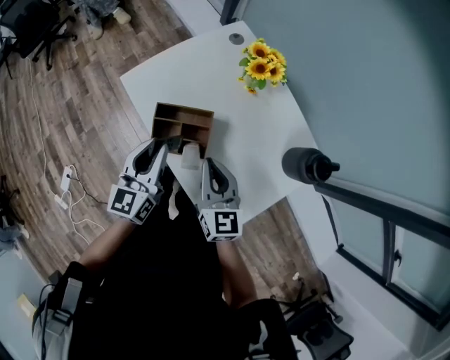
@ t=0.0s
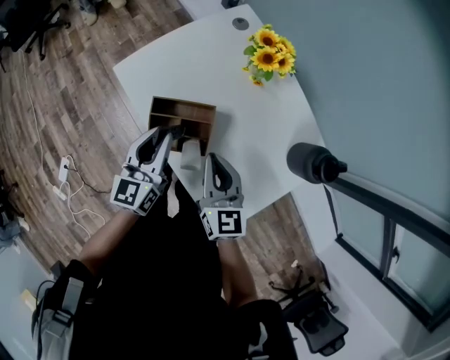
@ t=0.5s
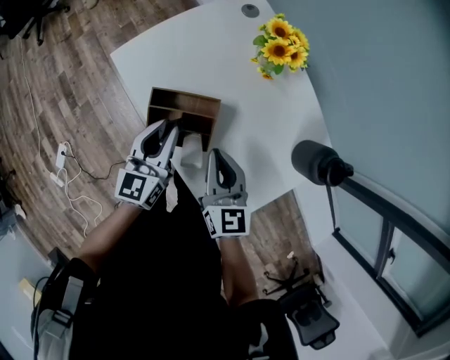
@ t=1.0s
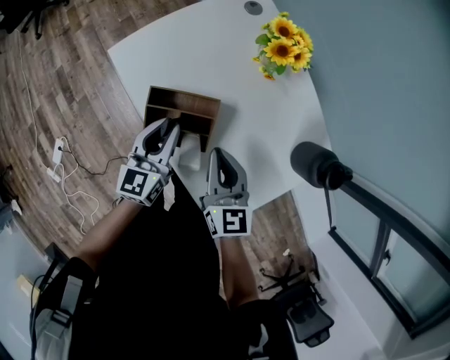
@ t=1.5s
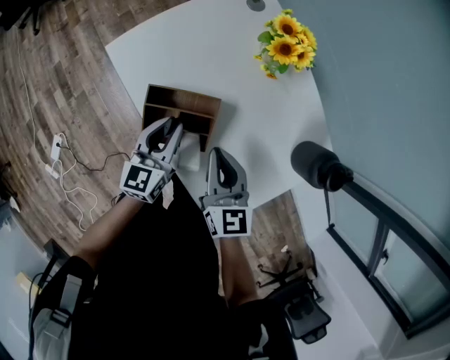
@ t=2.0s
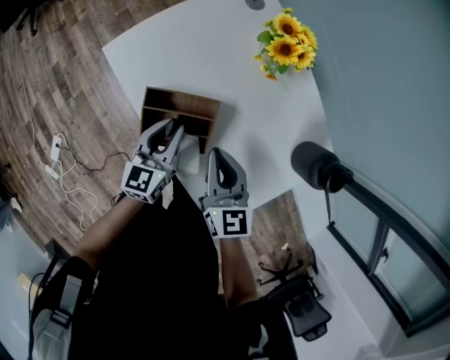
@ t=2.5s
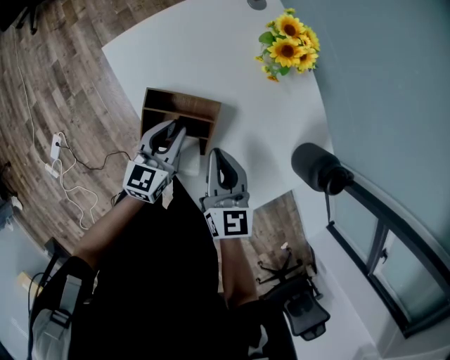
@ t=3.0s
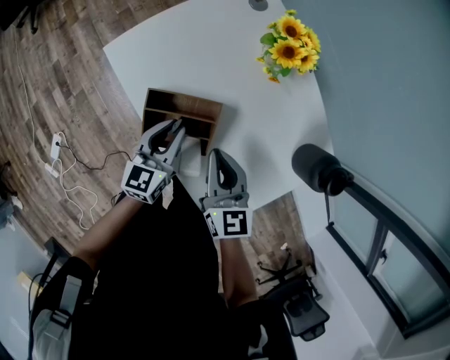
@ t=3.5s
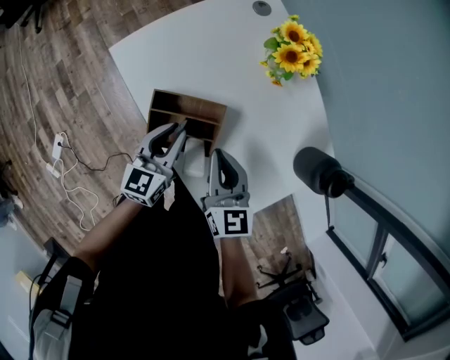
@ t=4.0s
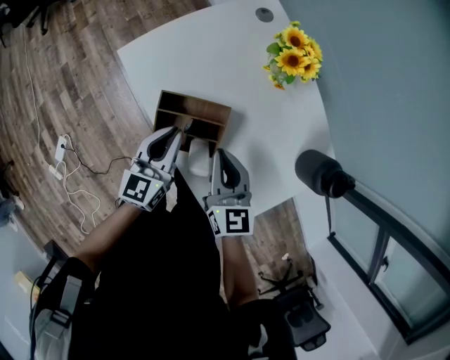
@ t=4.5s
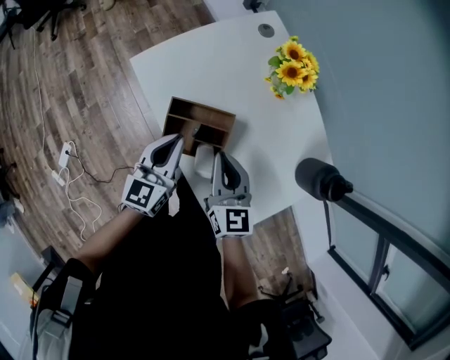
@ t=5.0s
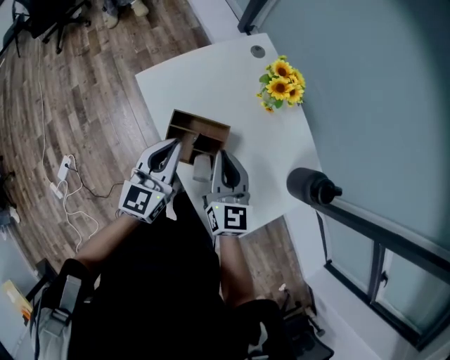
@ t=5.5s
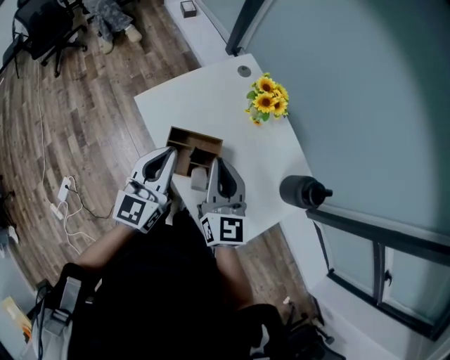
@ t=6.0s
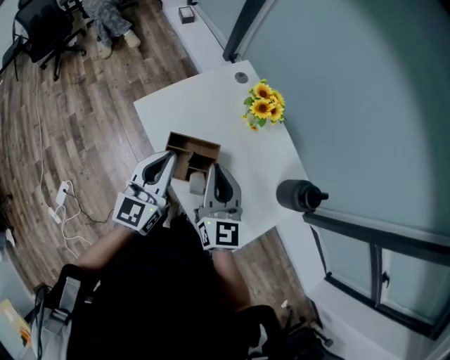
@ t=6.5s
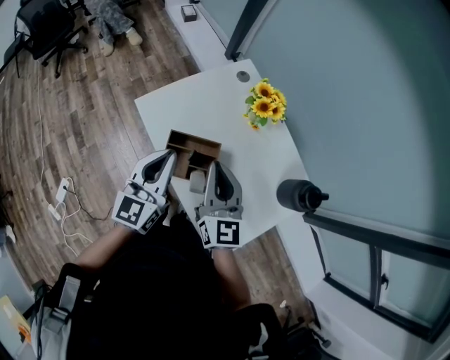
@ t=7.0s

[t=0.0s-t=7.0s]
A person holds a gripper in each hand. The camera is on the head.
t=0.0s to t=2.0s: The right gripper heads downward, covering some 5 cm. The left gripper is displaced downward and forward by approximately 15 cm.
t=2.0s to t=3.5s: There are only small adjustments of the grippers.
t=3.5s to t=5.0s: The left gripper heads upward, covering about 10 cm.
t=5.0s to t=7.0s: The two grippers go about 15 cm upward.

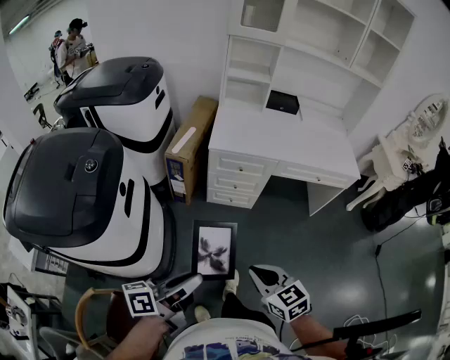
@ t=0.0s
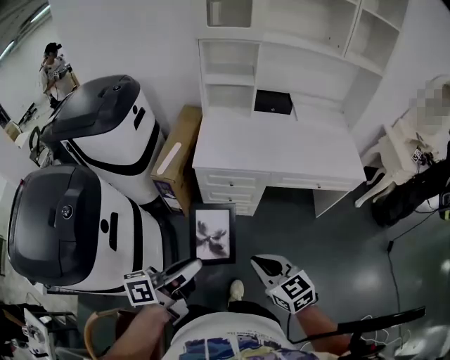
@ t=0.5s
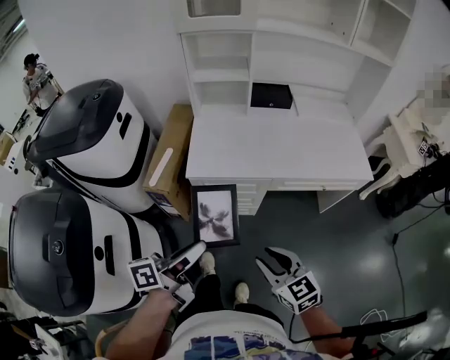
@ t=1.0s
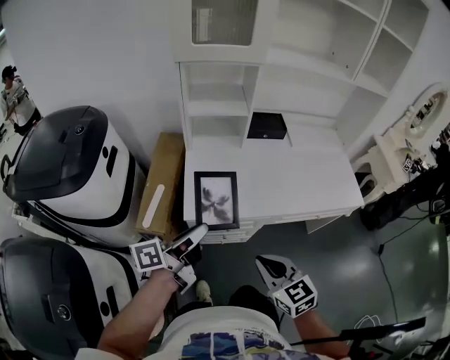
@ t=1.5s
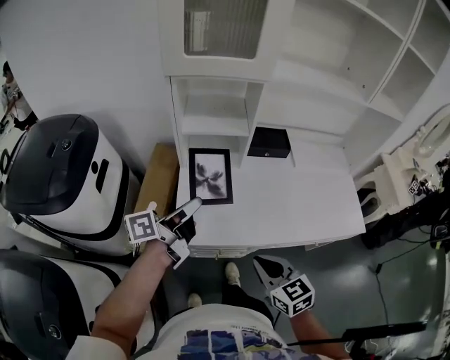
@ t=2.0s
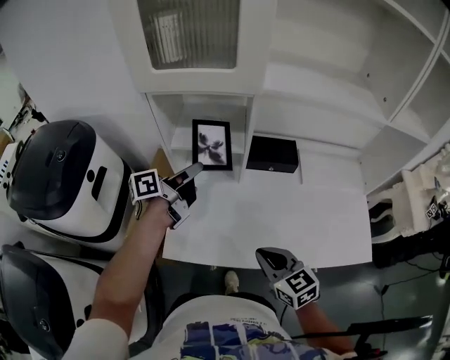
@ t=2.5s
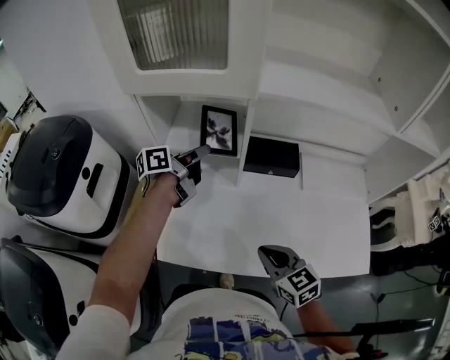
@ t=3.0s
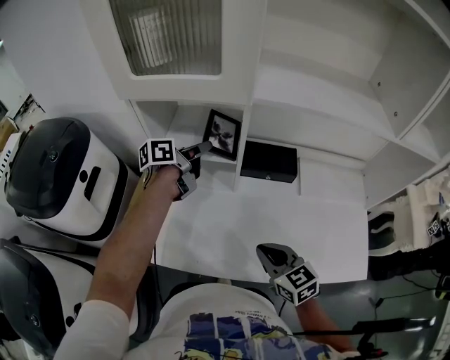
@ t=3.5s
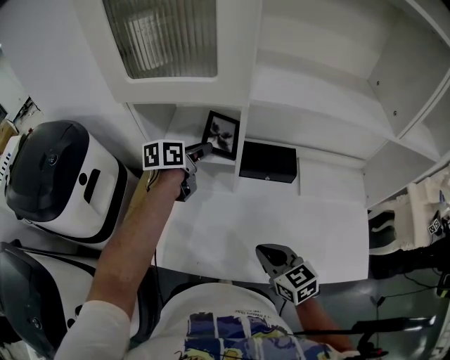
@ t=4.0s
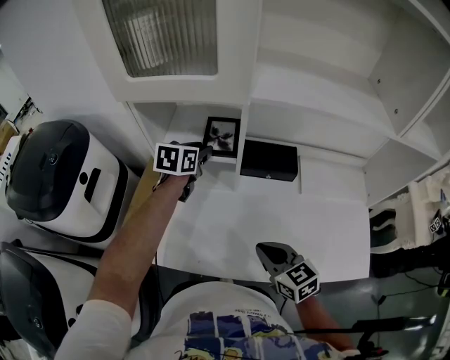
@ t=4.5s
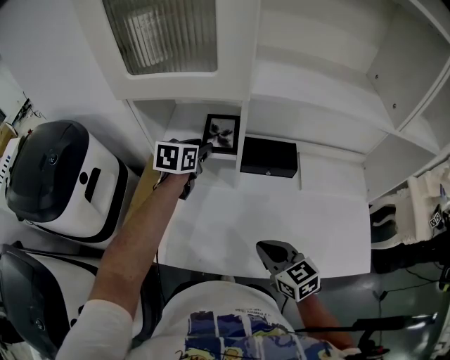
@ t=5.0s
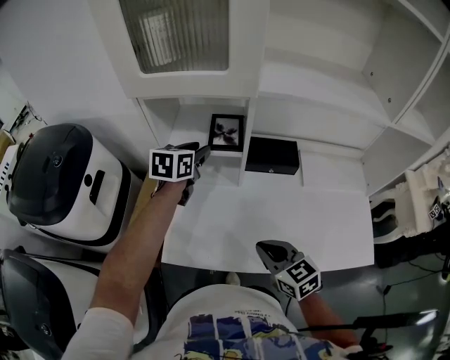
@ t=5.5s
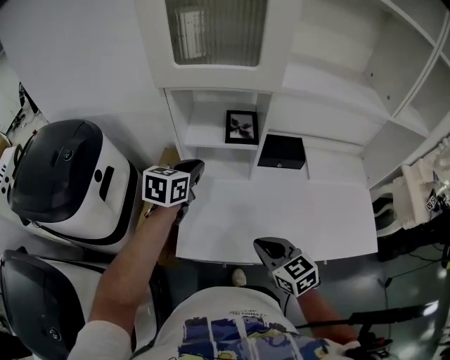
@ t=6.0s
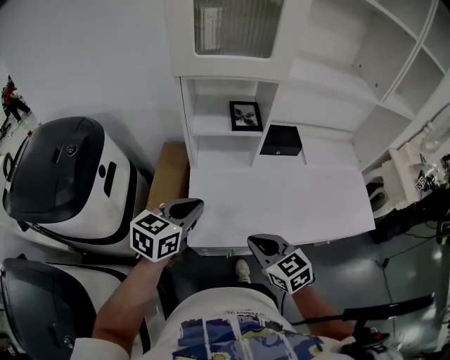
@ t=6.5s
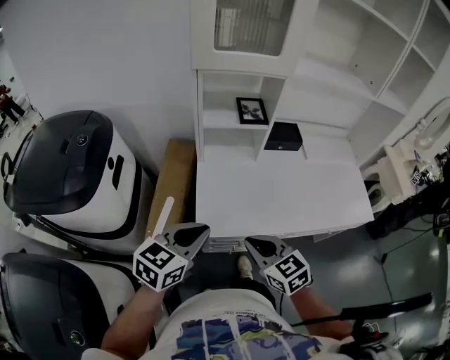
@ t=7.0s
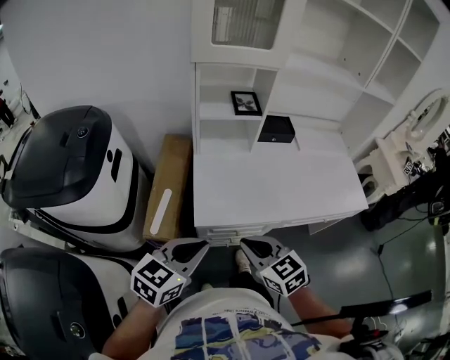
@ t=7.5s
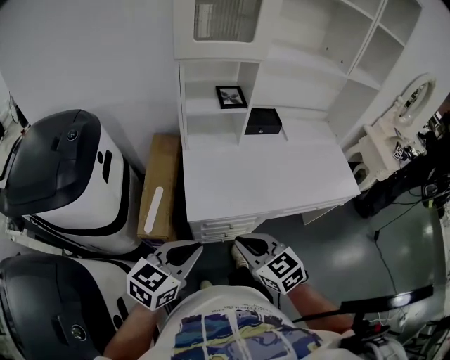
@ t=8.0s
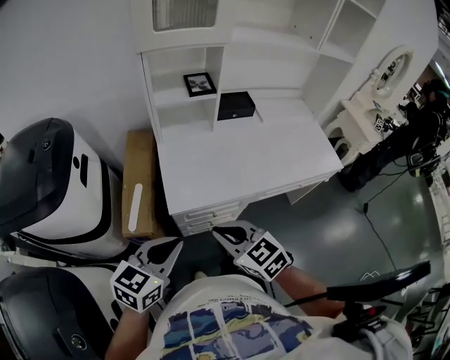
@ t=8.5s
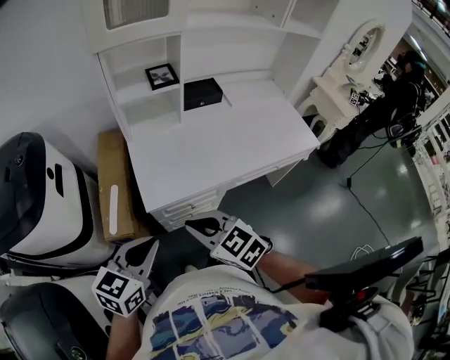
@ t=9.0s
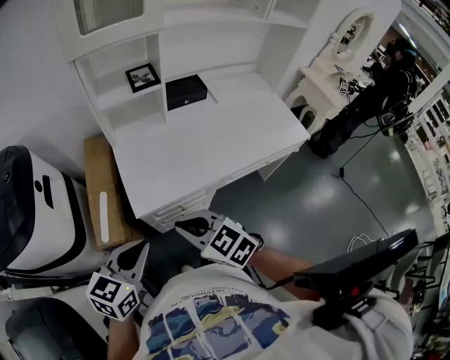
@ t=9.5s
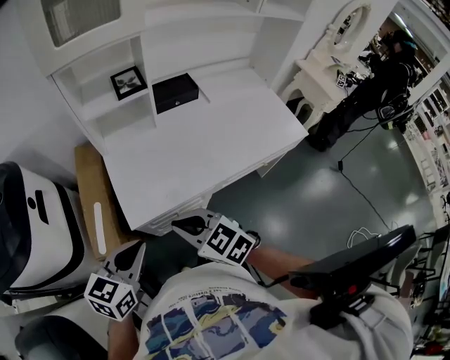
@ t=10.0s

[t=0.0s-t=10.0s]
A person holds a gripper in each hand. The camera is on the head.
t=0.0s to t=2.0s: The two grippers travel together, forward, some 50 cm. The right gripper opens, then closes again.
t=2.0s to t=4.0s: The left gripper is displaced forward by approximately 30 cm, and swivels some 40 degrees. Meanwhile the right gripper heads forward and to the right, covering roughly 20 cm.
t=4.0s to t=6.0s: The right gripper shifts about 10 cm to the left. The left gripper heads backward and to the left, covering some 15 cm, turns by about 20 degrees, and closes its fingers.
t=6.0s to t=8.0s: The right gripper shifts about 25 cm backward and to the left, while the left gripper is displaced backward by approximately 40 cm, and changes its angle by roughly 30 degrees.
t=8.0s to t=10.0s: The left gripper moves forward, about 5 cm, while the right gripper ends up roughly 5 cm from where it was.

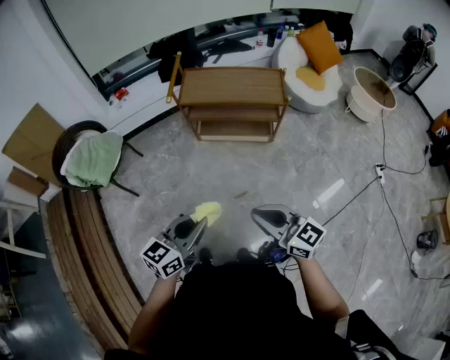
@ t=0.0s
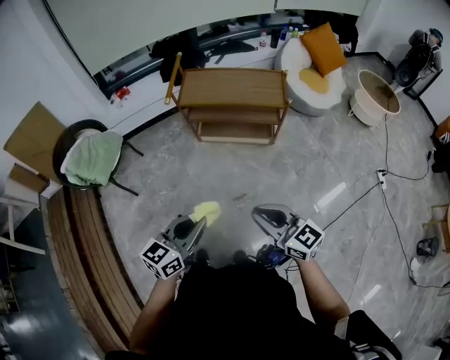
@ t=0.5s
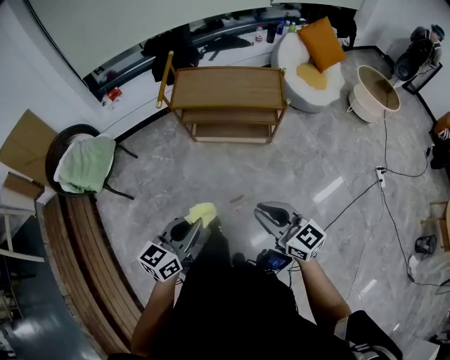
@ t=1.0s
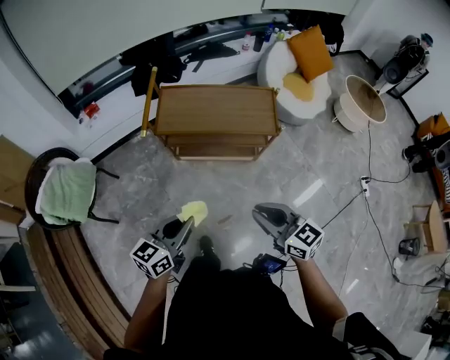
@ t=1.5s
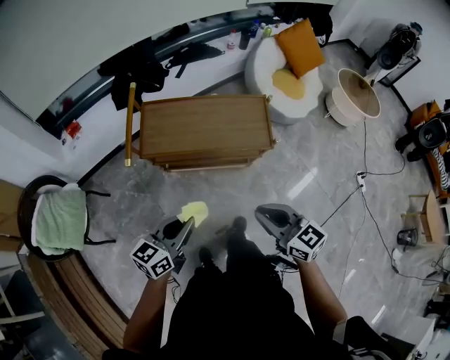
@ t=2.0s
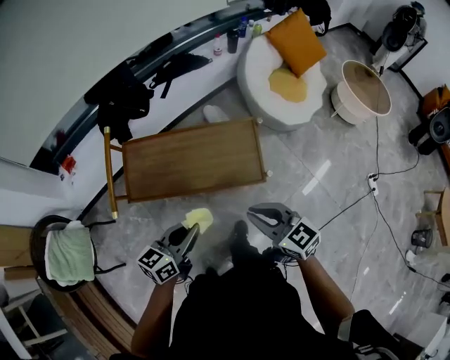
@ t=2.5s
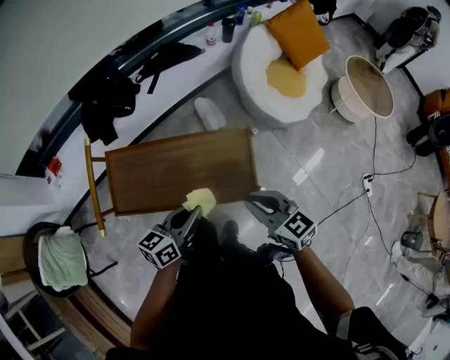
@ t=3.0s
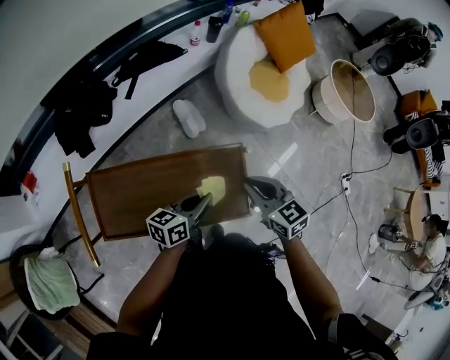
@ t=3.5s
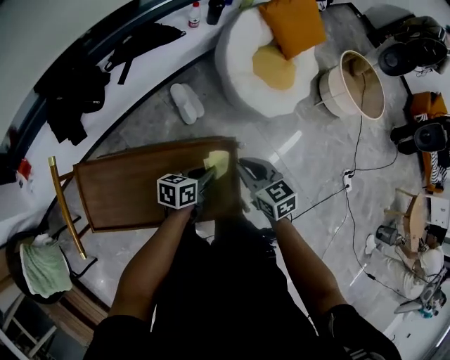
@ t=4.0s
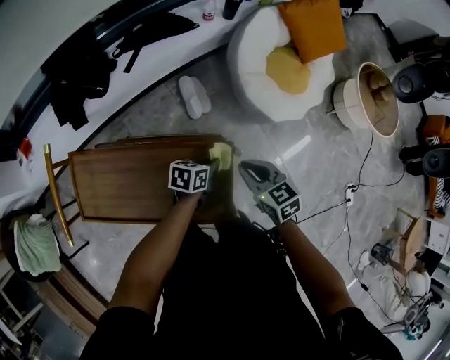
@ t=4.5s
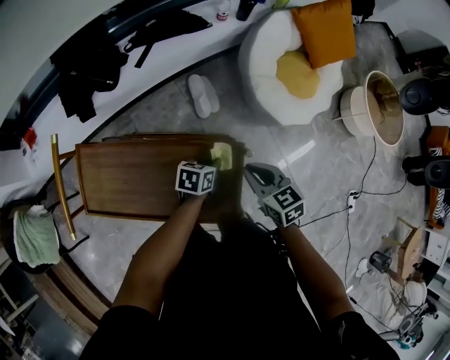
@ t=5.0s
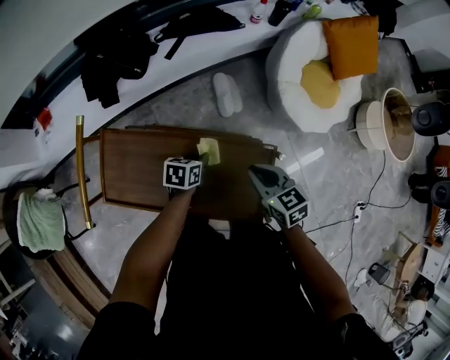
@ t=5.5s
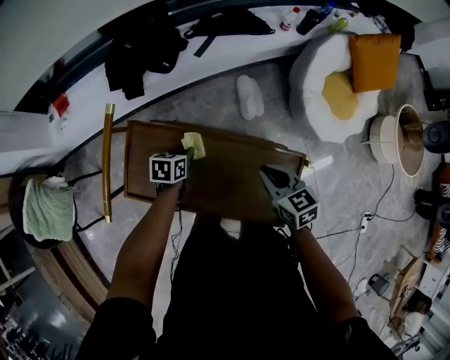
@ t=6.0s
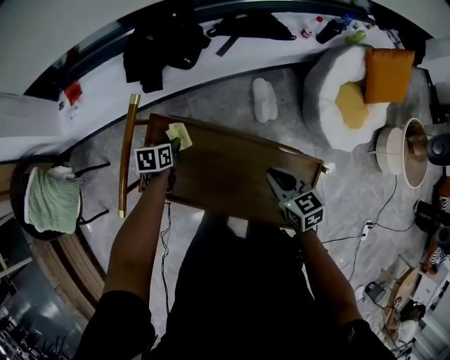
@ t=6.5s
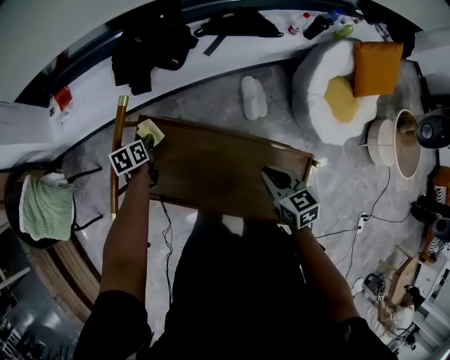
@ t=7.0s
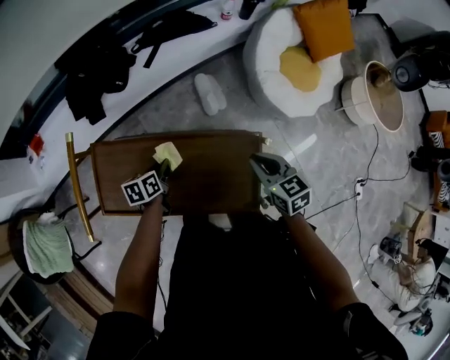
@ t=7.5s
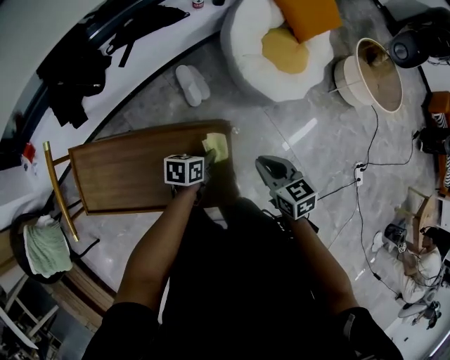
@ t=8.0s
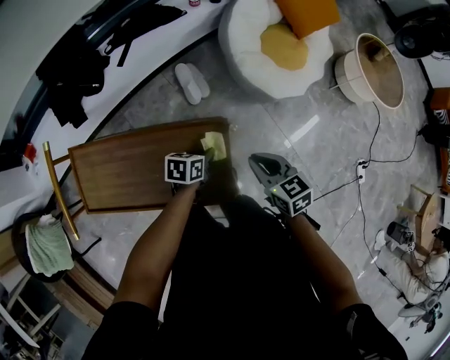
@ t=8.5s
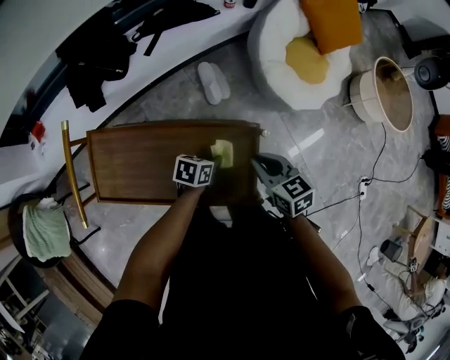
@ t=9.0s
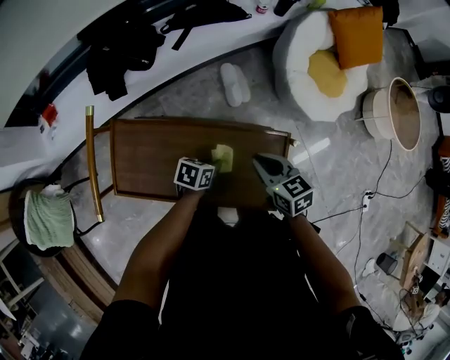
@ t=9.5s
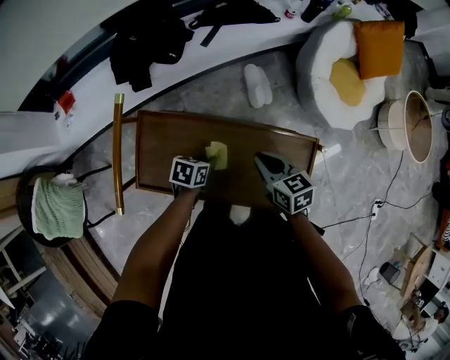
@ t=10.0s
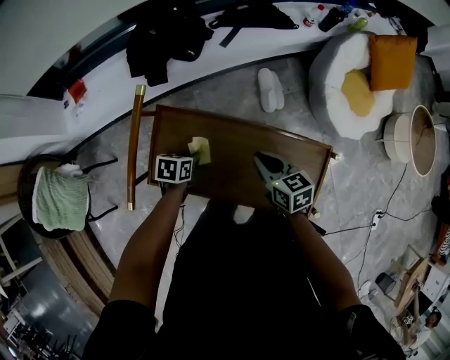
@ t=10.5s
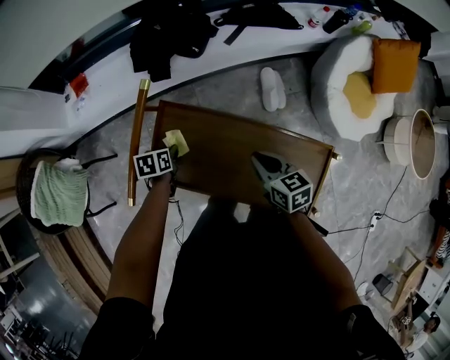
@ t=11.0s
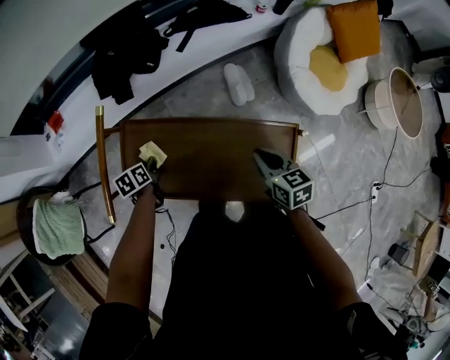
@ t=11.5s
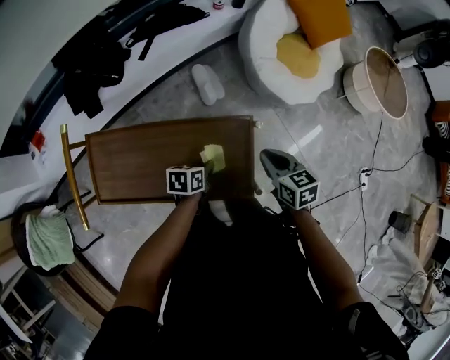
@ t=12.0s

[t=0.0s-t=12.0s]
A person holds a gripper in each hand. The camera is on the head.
t=0.0s to t=2.0s: The grippers both shift forward by approximately 35 cm.
t=2.0s to t=4.0s: The two grippers travel together, forward and to the right, approximately 50 cm. The right gripper turns by about 20 degrees. Meanwhile the left gripper rotates some 30 degrees.
t=4.0s to t=6.0s: The left gripper heads to the left, covering approximately 30 cm, and swivels roughly 30 degrees. The right gripper goes some 15 cm to the left.
t=6.0s to t=8.0s: The left gripper shifts by approximately 30 cm, and swivels approximately 20 degrees. The right gripper changes place by roughly 25 cm.
t=8.0s to t=10.0s: The two grippers go approximately 25 cm to the left.
t=10.0s to t=12.0s: The left gripper shifts by approximately 20 cm. Meanwhile the right gripper changes place by about 25 cm.
